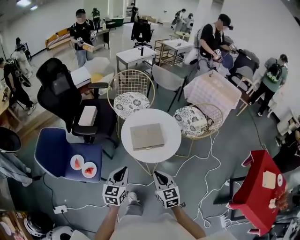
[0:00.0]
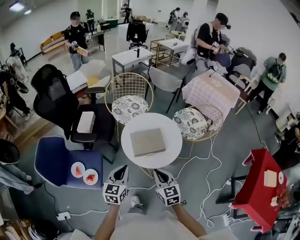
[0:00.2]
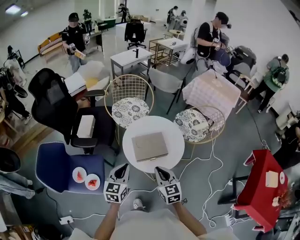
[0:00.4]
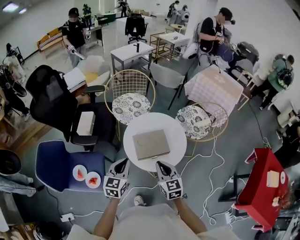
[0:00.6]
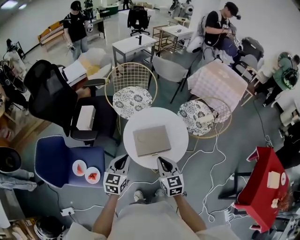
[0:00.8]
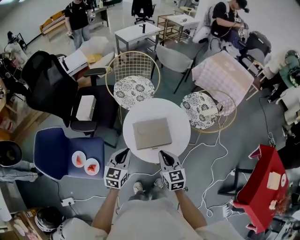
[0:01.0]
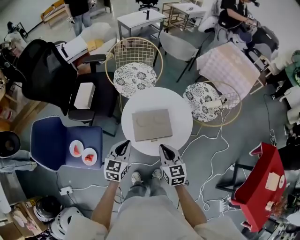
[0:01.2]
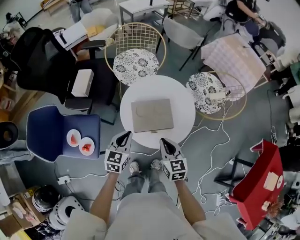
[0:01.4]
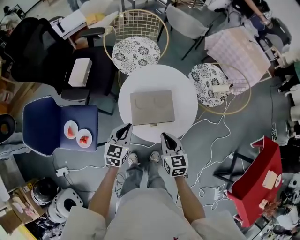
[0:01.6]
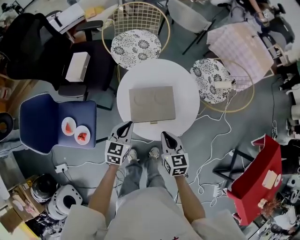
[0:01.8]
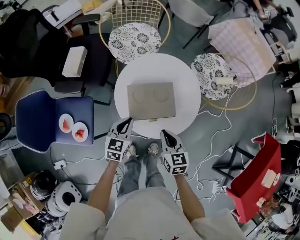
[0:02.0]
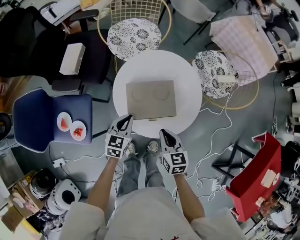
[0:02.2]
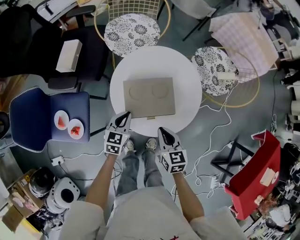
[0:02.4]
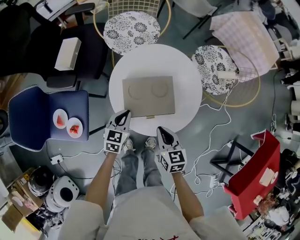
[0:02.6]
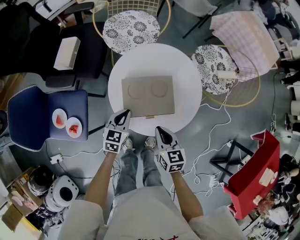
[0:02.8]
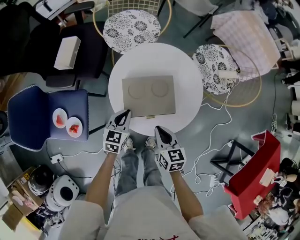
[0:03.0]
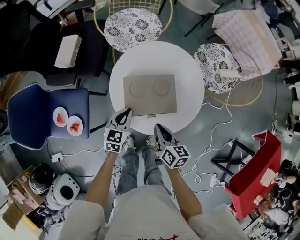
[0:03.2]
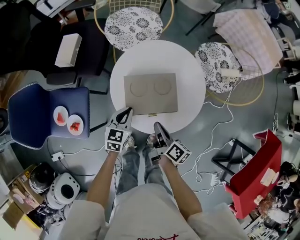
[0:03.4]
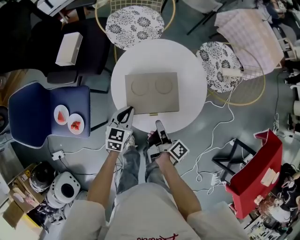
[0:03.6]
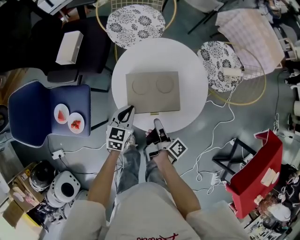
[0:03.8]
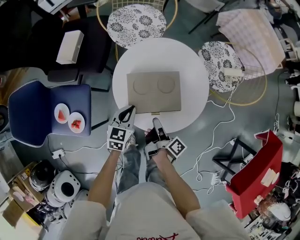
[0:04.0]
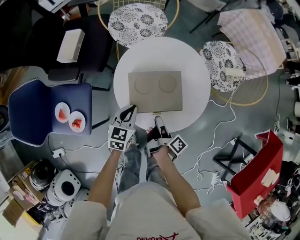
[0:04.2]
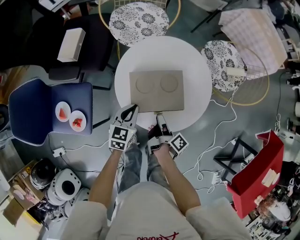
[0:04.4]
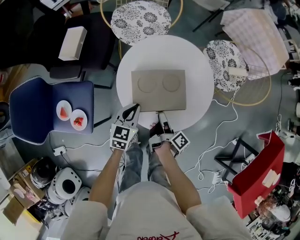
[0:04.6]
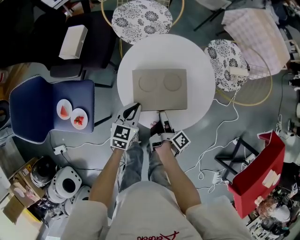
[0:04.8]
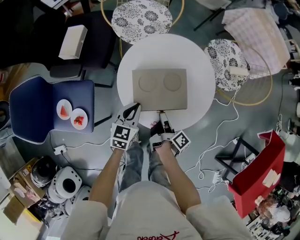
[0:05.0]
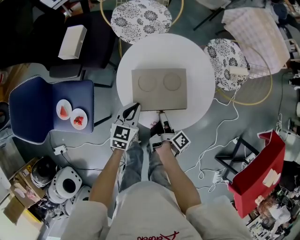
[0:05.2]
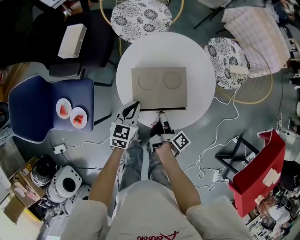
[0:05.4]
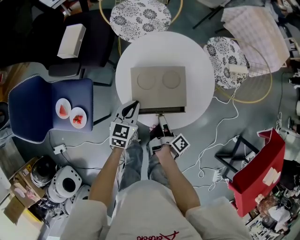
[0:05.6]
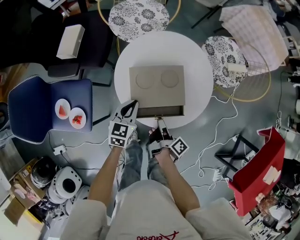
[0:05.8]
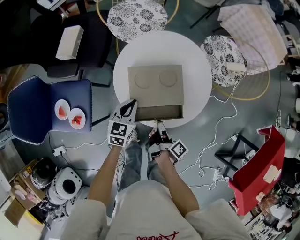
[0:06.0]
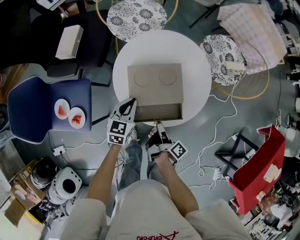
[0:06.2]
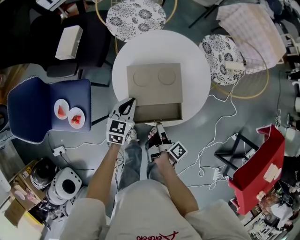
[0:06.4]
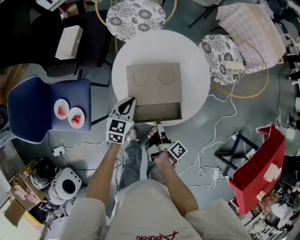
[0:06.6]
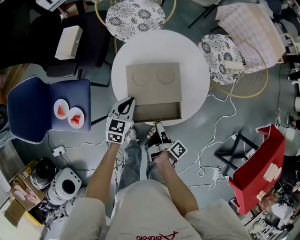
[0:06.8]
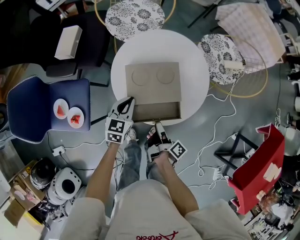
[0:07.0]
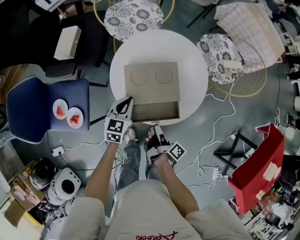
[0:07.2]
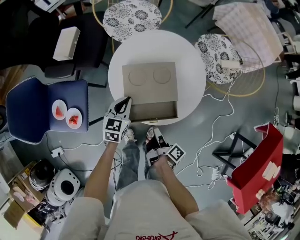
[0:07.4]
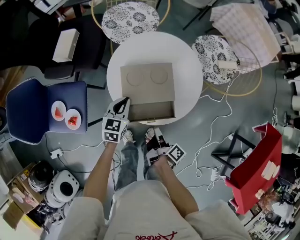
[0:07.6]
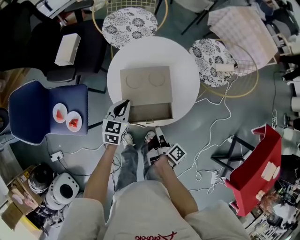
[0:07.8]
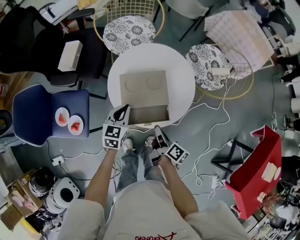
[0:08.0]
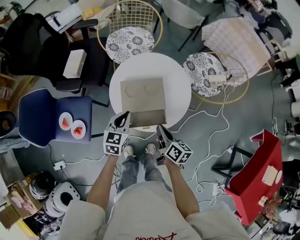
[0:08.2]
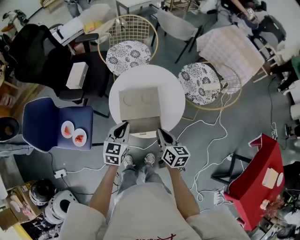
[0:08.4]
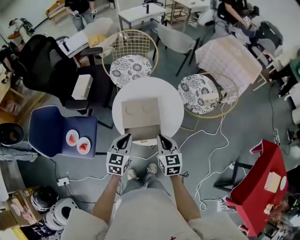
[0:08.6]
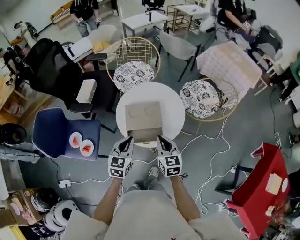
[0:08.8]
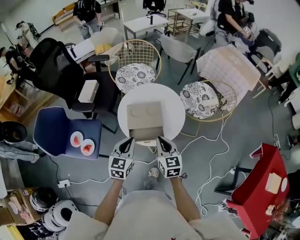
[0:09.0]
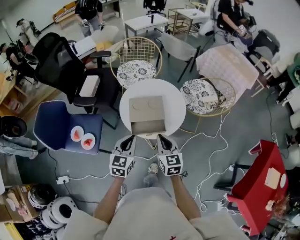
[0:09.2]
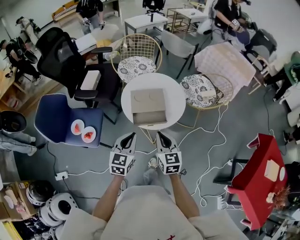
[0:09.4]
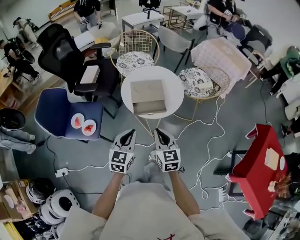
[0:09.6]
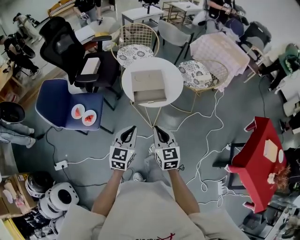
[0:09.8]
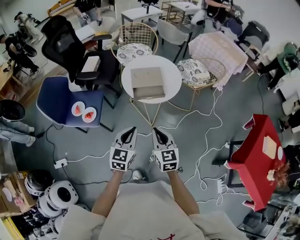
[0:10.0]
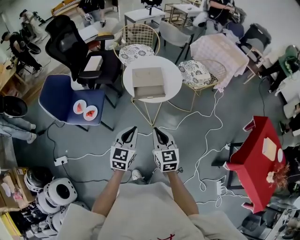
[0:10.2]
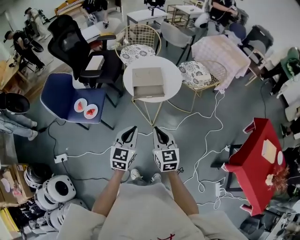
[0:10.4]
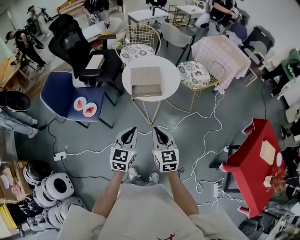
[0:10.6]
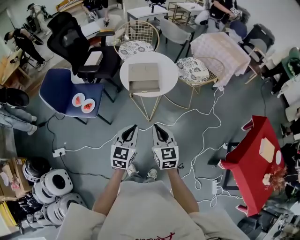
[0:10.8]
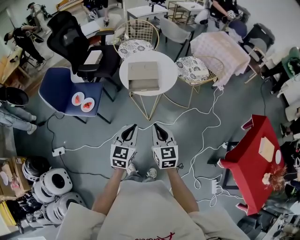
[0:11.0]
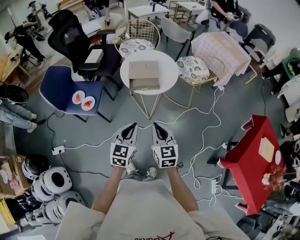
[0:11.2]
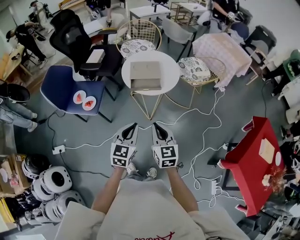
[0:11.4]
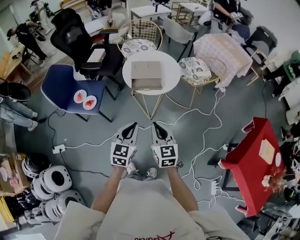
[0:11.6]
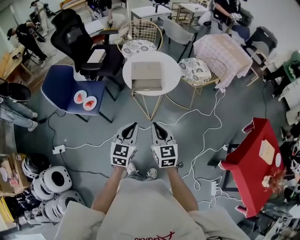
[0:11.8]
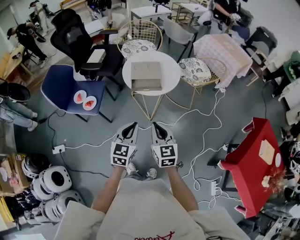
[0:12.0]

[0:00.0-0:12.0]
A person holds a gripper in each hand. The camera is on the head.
0:00.0 to 0:01.6: The grippers both shift forward and downward by some 20 cm.
0:01.6 to 0:03.0: The two grippers go some 10 cm downward.
0:03.0 to 0:04.4: The right gripper moves downward, about 5 cm, rolls clockwise, seen from behind, by about 80 degrees, and opens.
0:04.4 to 0:06.0: The right gripper heads backward, covering about 5 cm.
0:06.0 to 0:07.6: The right gripper opens, then closes once more.
0:07.6 to 0:09.0: The right gripper is displaced upward by some 20 cm, and rotates around the line of its fingers by about 90 degrees, counterclockwise from behind, while the left gripper travels upward and backward by some 25 cm.
0:09.0 to 0:10.4: Both grippers travel together backward, some 30 cm.
0:10.4 to 0:12.0: The grippers move only a little.

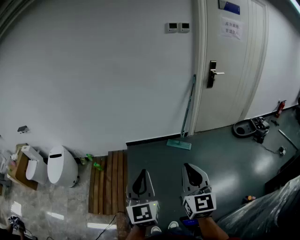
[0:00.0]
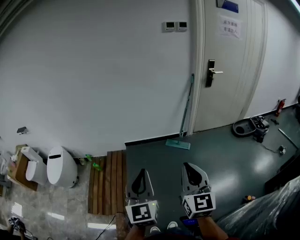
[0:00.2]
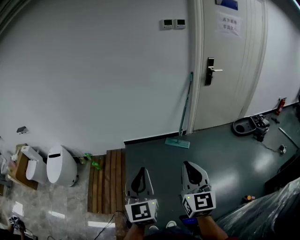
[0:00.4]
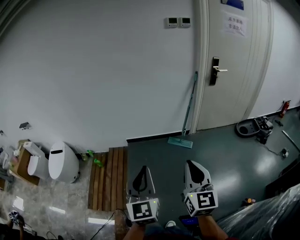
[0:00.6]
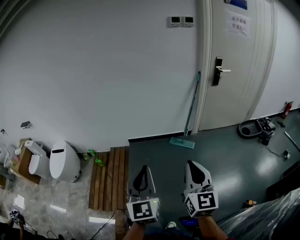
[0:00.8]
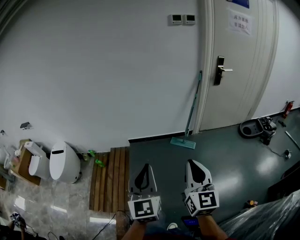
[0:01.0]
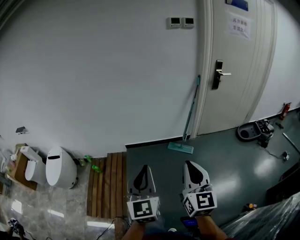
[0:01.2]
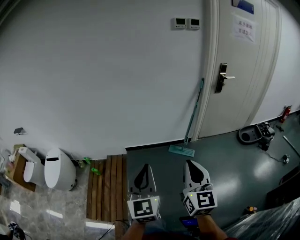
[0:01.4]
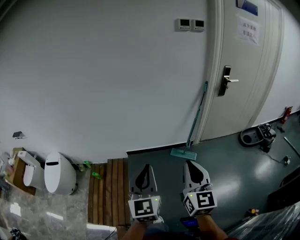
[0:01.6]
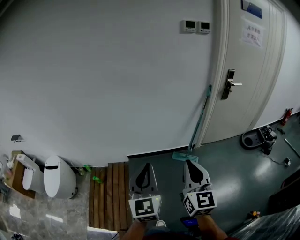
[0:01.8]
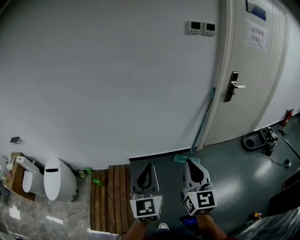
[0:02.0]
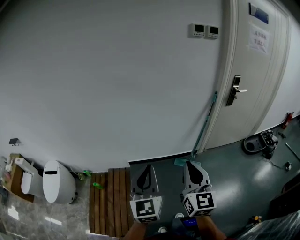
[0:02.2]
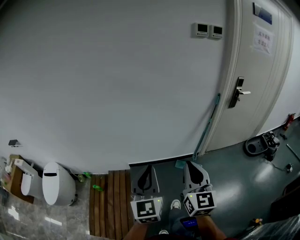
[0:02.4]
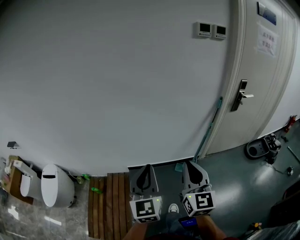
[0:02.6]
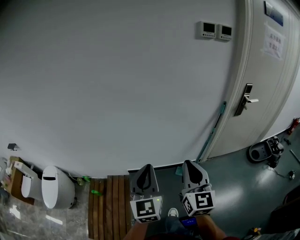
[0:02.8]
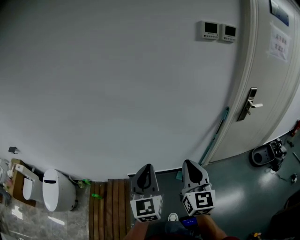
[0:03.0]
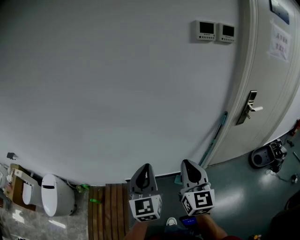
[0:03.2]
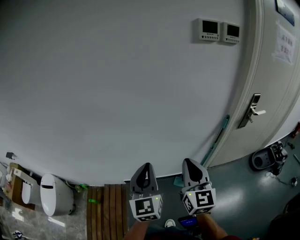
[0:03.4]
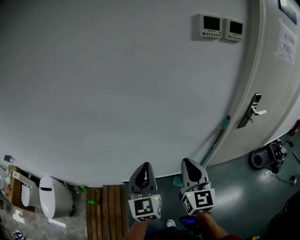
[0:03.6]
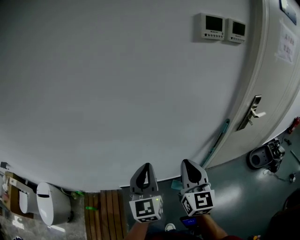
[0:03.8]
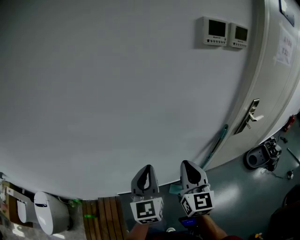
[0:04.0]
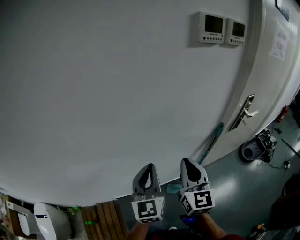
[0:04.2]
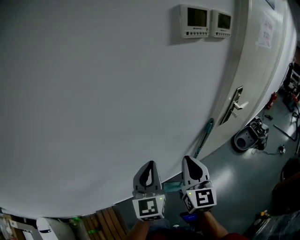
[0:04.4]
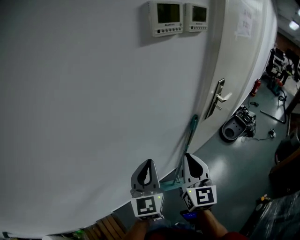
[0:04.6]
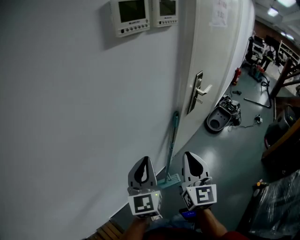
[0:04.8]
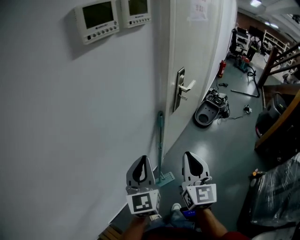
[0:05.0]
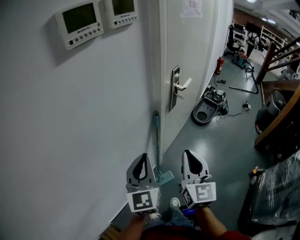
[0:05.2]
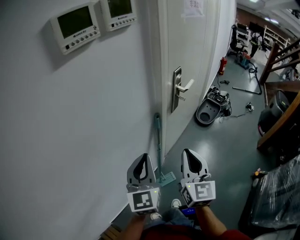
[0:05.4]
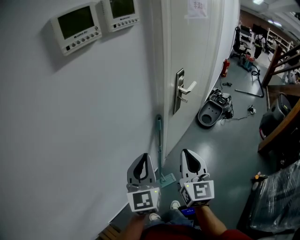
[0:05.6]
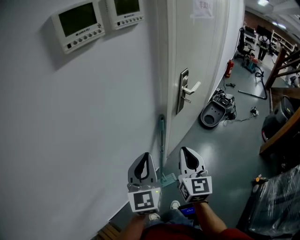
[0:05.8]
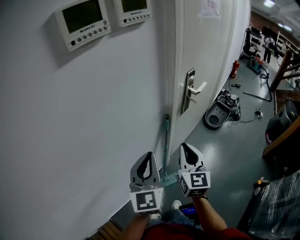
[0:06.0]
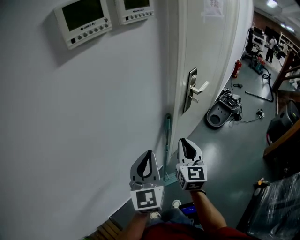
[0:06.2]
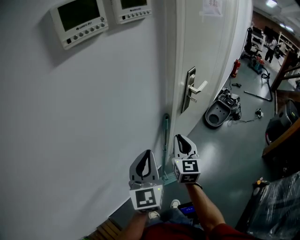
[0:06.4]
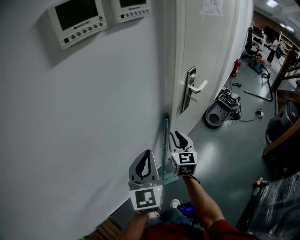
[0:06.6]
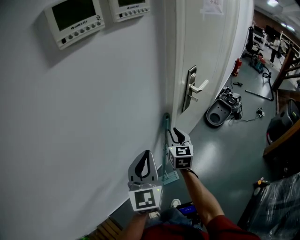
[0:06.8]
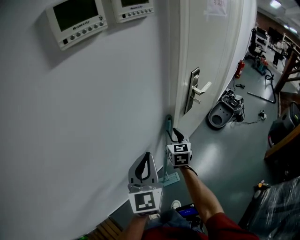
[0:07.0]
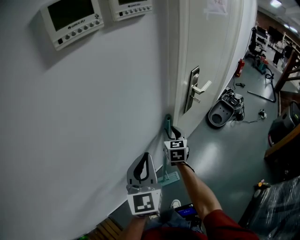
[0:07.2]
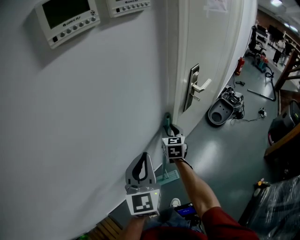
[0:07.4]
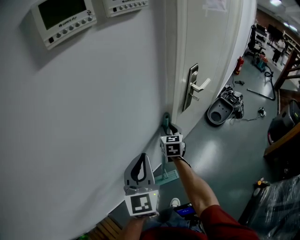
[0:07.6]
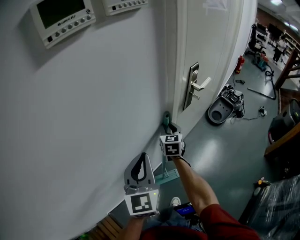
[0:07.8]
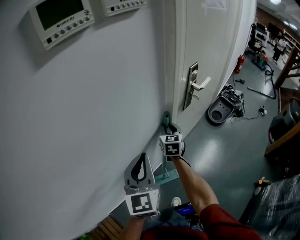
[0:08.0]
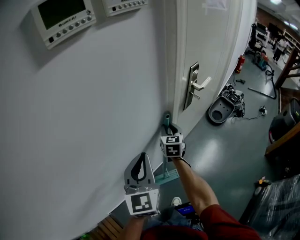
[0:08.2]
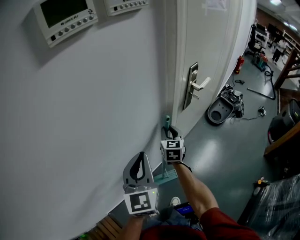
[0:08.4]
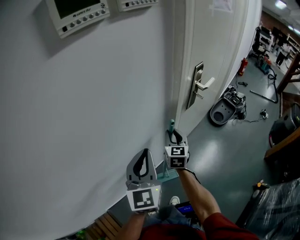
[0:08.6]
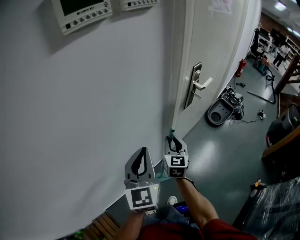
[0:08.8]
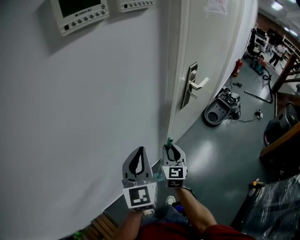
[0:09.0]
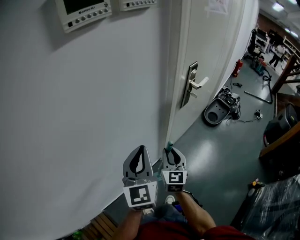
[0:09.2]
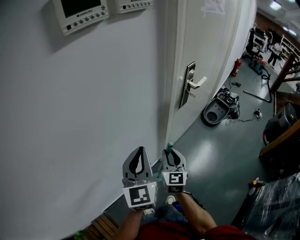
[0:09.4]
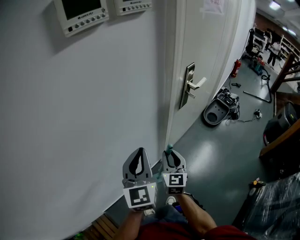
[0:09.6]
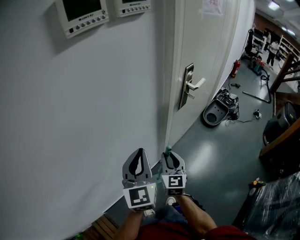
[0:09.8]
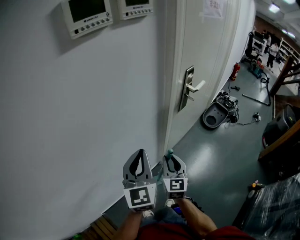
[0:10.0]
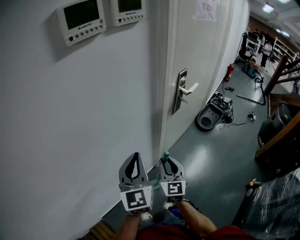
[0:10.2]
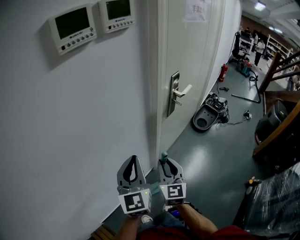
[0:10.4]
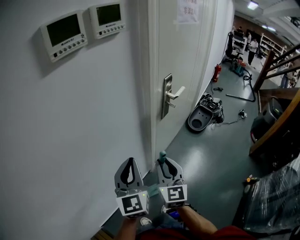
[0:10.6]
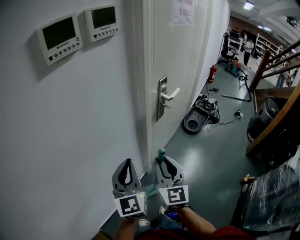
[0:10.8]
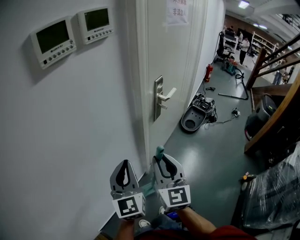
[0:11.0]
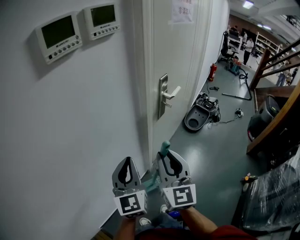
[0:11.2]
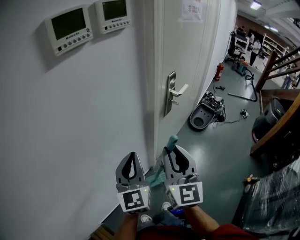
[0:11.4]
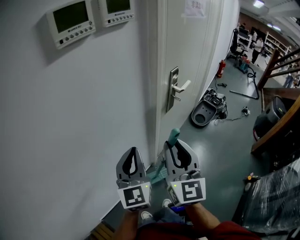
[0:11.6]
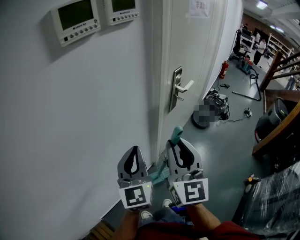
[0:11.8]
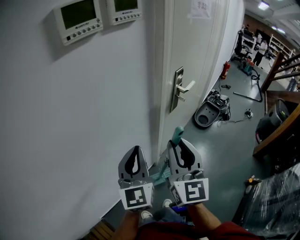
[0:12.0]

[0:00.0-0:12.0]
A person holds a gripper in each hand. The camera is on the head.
0:00.0 to 0:01.6: The grippers both shift forward by approximately 25 cm.
0:01.6 to 0:03.0: Both grippers move forward, roughly 35 cm.
0:03.0 to 0:04.4: The grippers both shift forward by roughly 30 cm. The right gripper turns by approximately 20 degrees; the left gripper changes its angle by some 20 degrees.
0:04.4 to 0:06.0: The right gripper ends up about 20 cm from where it was, and turns by roughly 20 degrees. The left gripper ends up roughly 20 cm from where it was, and changes its angle by about 20 degrees.
0:06.0 to 0:07.6: The right gripper is displaced forward and downward by some 25 cm, and opens its fingers.
0:07.6 to 0:09.0: The right gripper heads backward, covering about 15 cm.
0:09.0 to 0:10.4: The right gripper is displaced backward and upward by about 10 cm.
0:10.4 to 0:12.0: The right gripper shifts approximately 15 cm upward.
